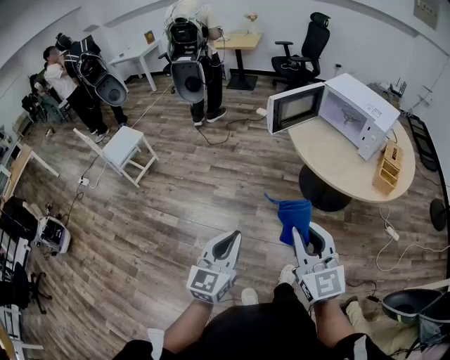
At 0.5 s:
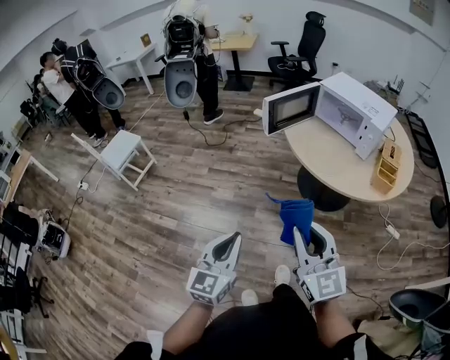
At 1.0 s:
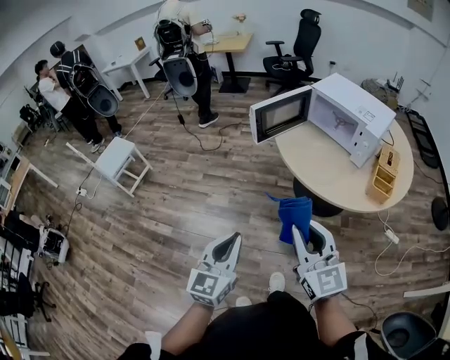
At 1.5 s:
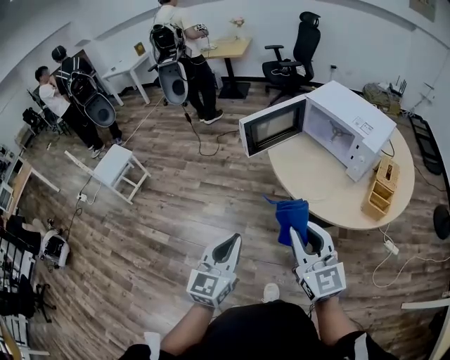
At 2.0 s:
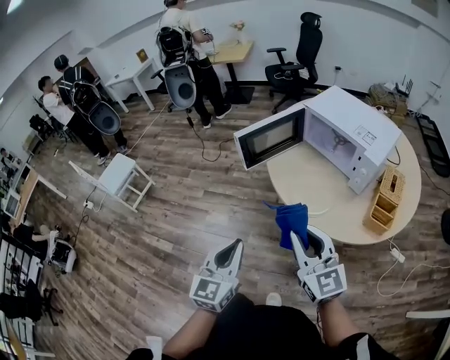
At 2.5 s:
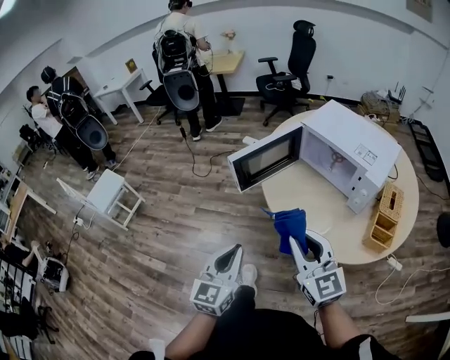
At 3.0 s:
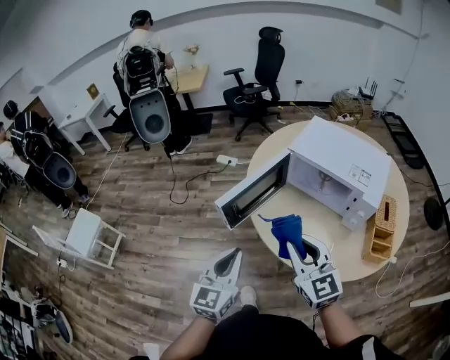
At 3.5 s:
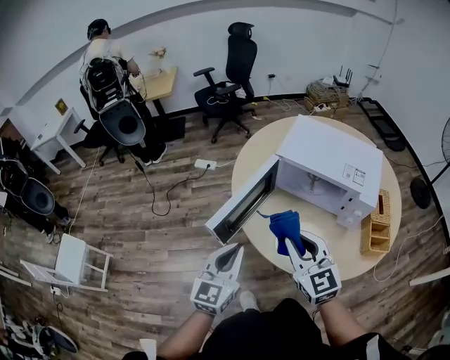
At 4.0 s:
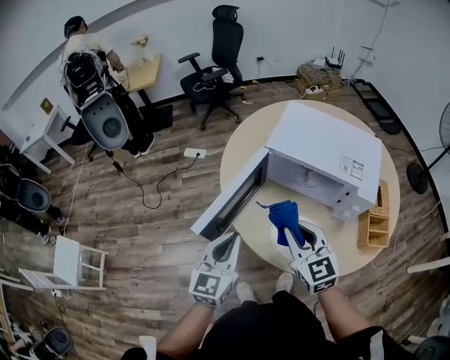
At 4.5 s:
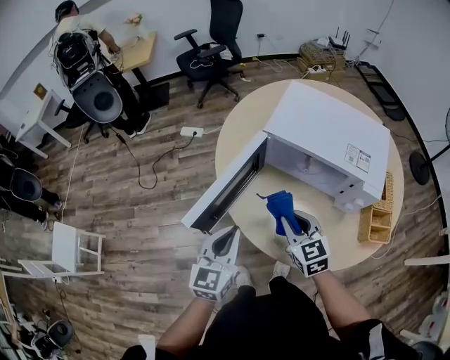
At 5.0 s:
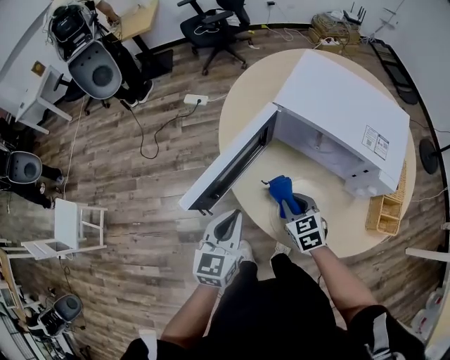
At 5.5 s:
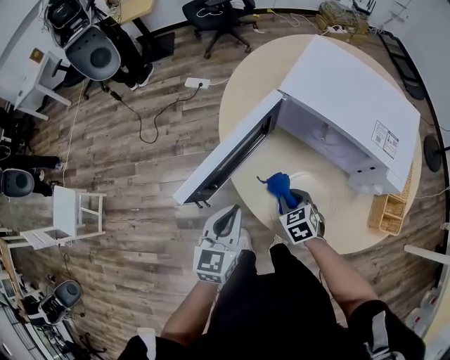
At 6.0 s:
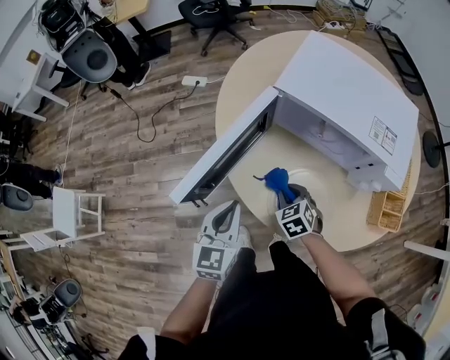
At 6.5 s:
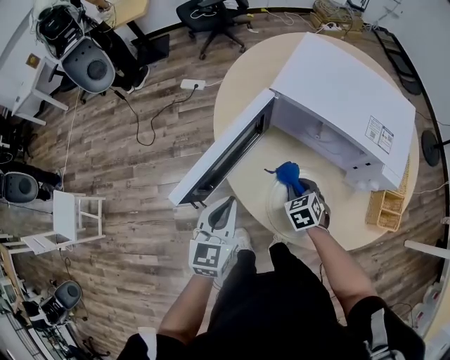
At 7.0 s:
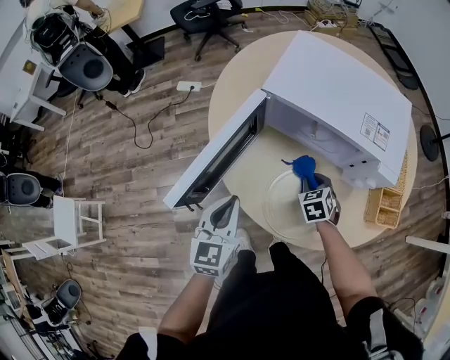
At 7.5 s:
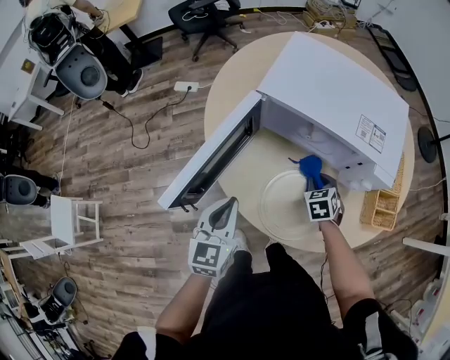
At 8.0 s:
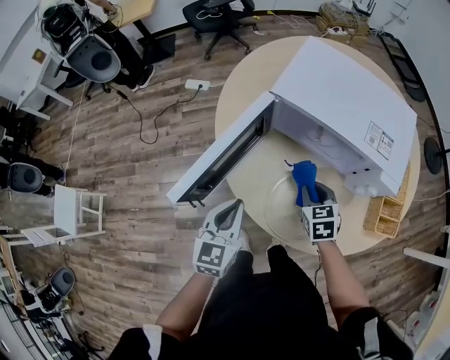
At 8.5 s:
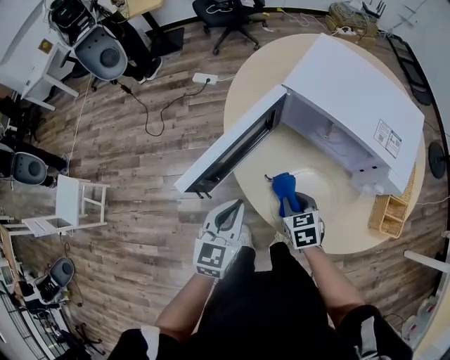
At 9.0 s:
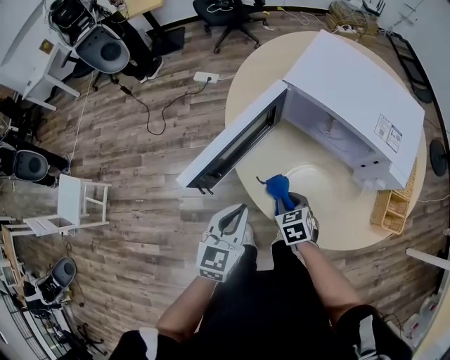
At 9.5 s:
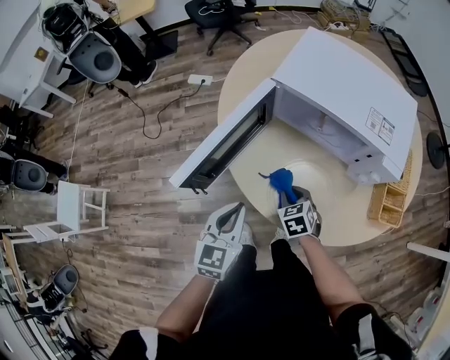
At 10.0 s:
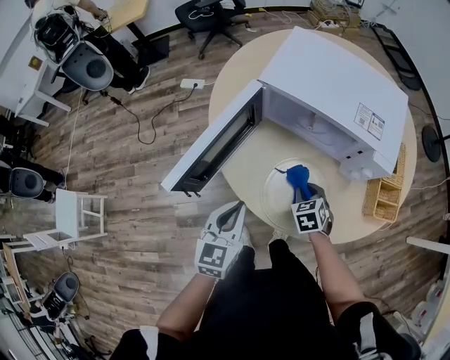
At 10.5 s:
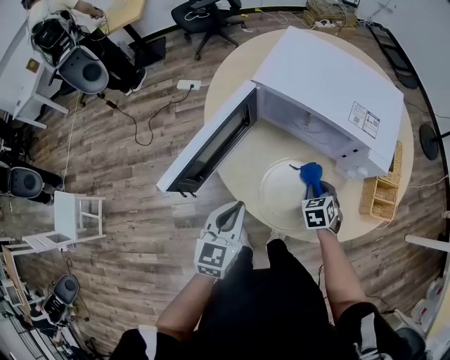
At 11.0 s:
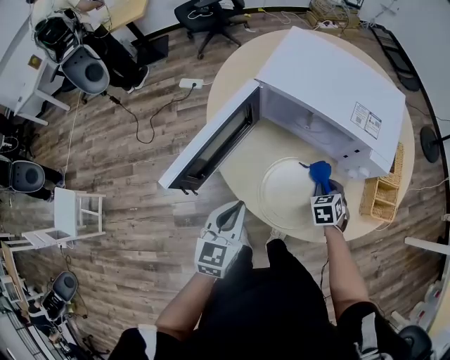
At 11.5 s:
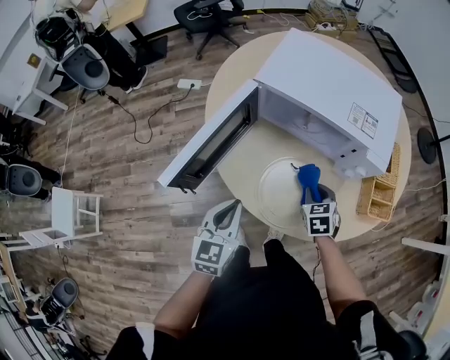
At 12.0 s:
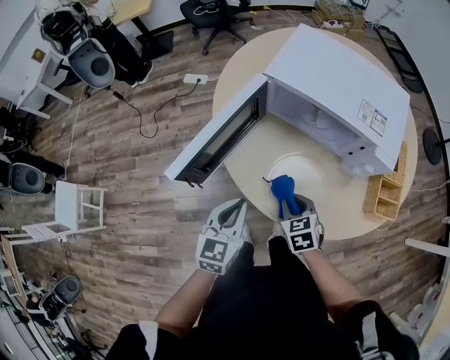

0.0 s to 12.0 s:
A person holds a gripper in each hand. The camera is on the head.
0.0 to 2.0 s: The grippers both shift forward and to the right by roughly 25 cm.
2.0 to 4.0 s: The left gripper moves about 40 cm, and swivels roughly 30 degrees. The right gripper changes place by approximately 35 cm, and rotates some 30 degrees.
4.0 to 6.0 s: The right gripper is displaced downward by some 25 cm, and angles its fingers downward, by about 40 degrees. Meanwhile the left gripper is displaced downward by some 10 cm.
6.0 to 8.0 s: The right gripper heads to the right and upward, covering about 10 cm, and turns by roughly 20 degrees.
8.0 to 10.0 s: The right gripper is displaced downward by approximately 5 cm, and reaches approximately 10 cm to the left, then returns.
10.0 to 12.0 s: The right gripper shifts some 10 cm backward and to the left.

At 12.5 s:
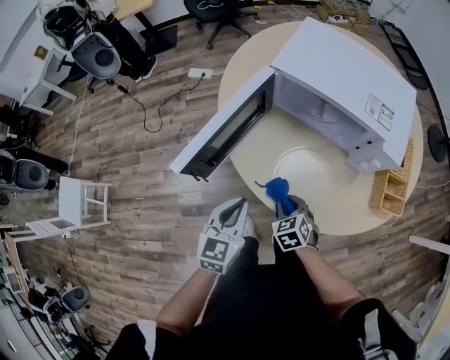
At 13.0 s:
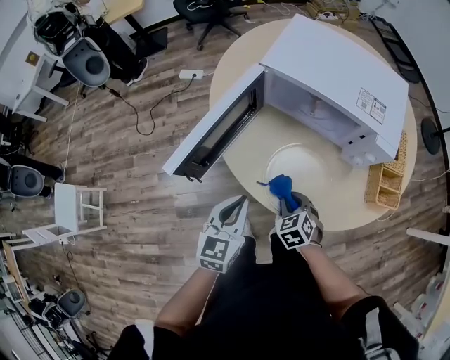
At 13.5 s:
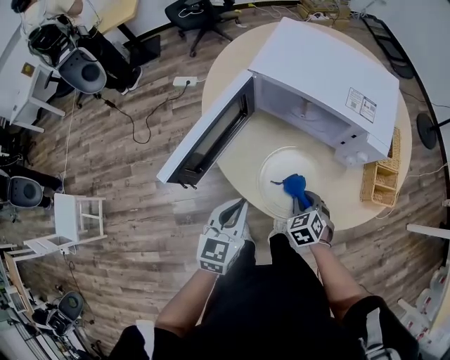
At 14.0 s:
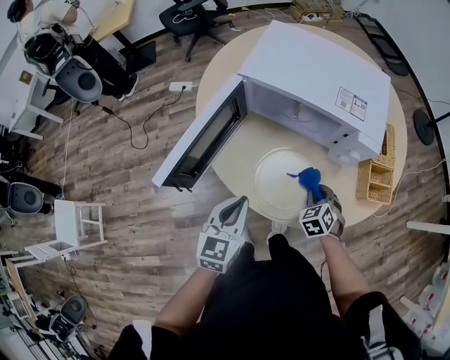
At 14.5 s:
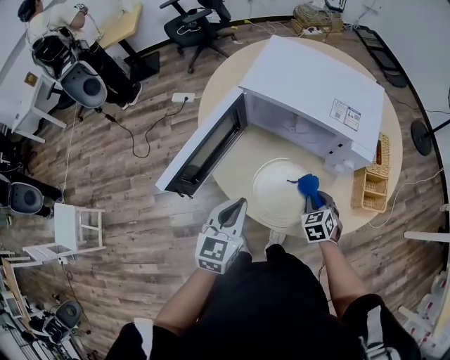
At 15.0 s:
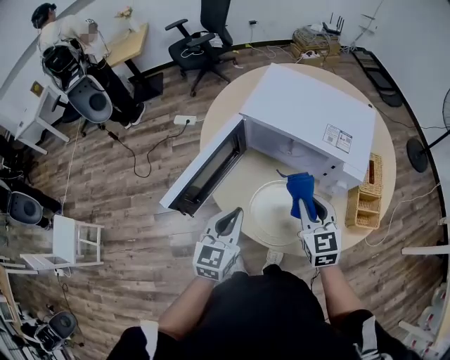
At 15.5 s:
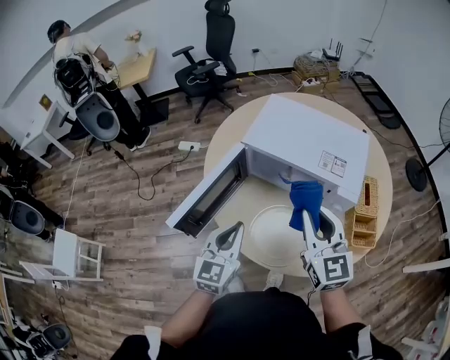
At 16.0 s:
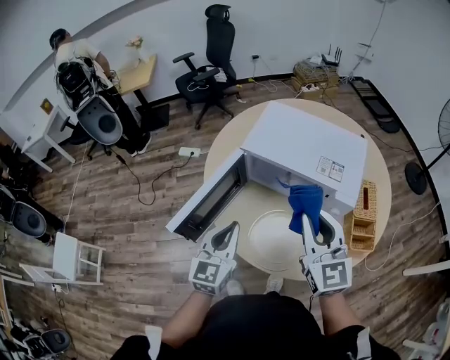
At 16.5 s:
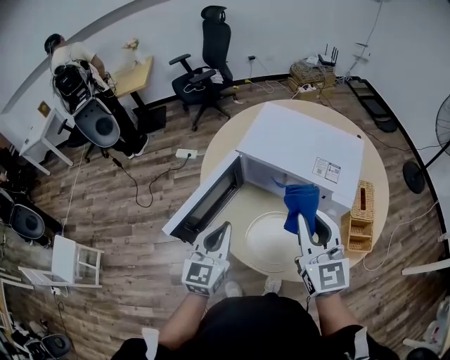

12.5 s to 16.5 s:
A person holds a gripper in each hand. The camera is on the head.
12.5 to 14.5 s: The left gripper shifts by approximately 5 cm. The right gripper goes approximately 20 cm to the right and forward.
14.5 to 16.5 s: The right gripper shifts approximately 35 cm upward, and tips its fingers upward by some 50 degrees. The left gripper shifts approximately 10 cm upward.

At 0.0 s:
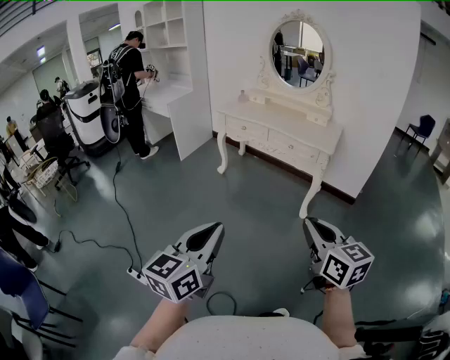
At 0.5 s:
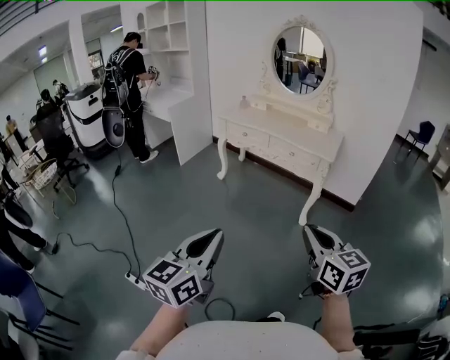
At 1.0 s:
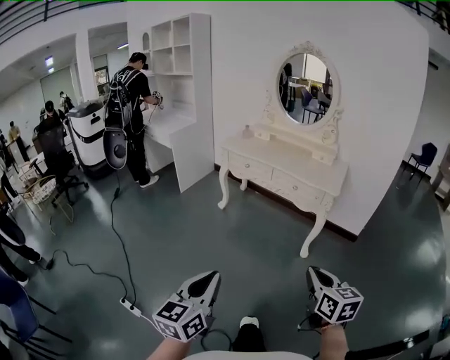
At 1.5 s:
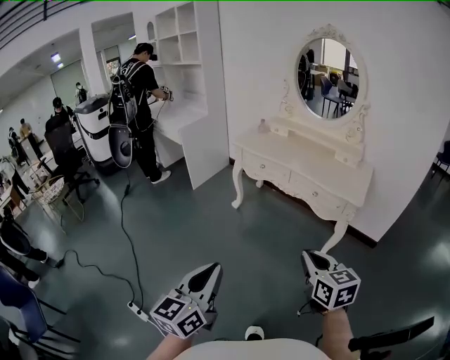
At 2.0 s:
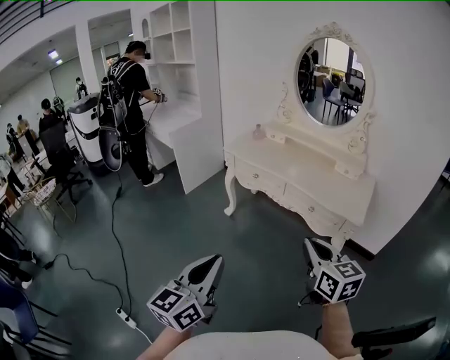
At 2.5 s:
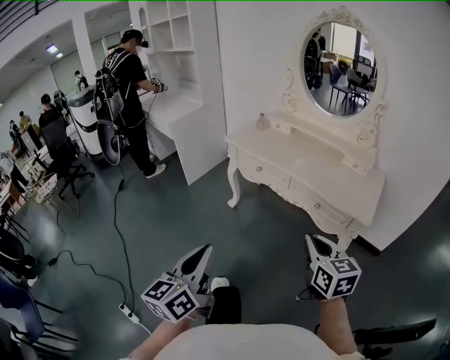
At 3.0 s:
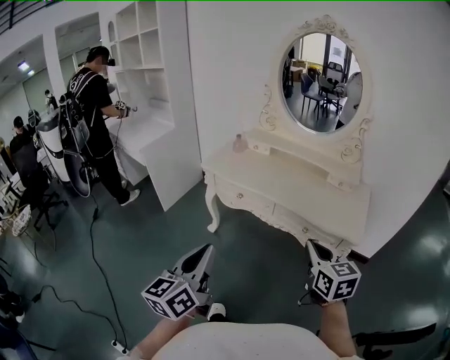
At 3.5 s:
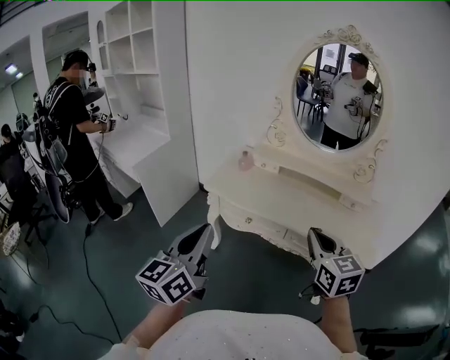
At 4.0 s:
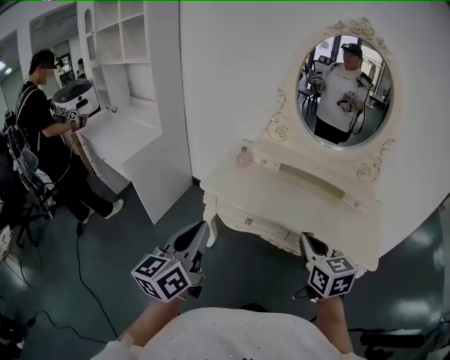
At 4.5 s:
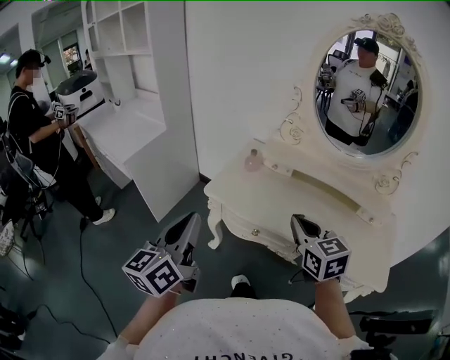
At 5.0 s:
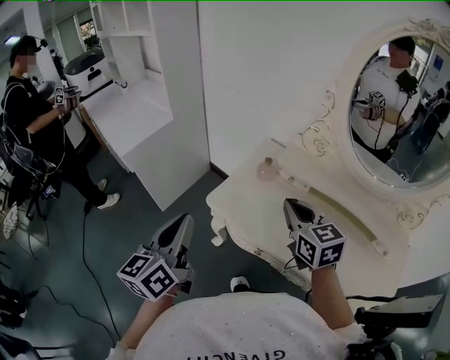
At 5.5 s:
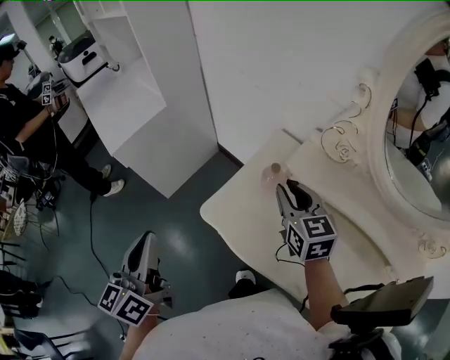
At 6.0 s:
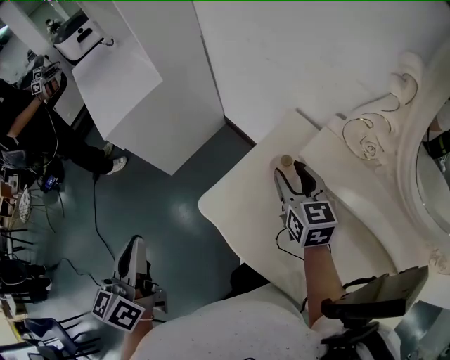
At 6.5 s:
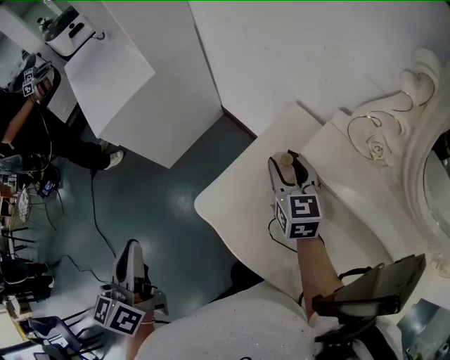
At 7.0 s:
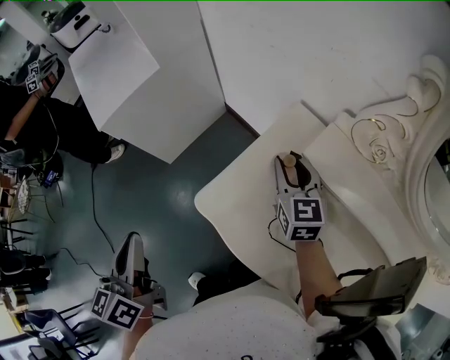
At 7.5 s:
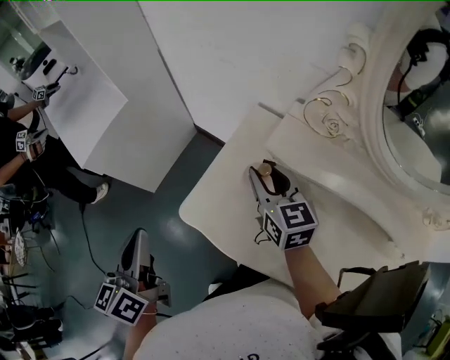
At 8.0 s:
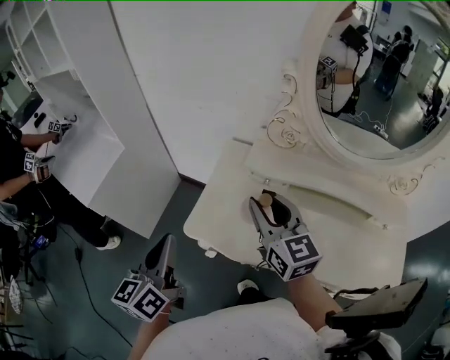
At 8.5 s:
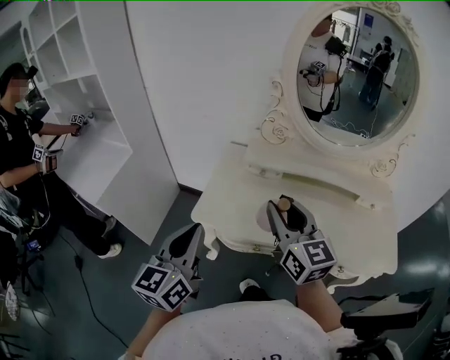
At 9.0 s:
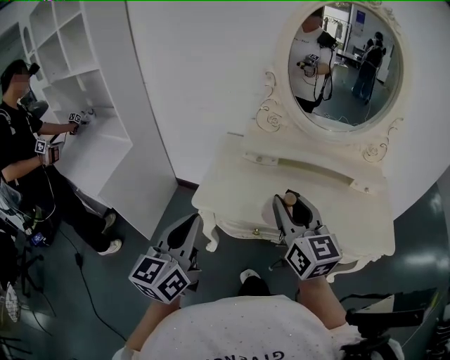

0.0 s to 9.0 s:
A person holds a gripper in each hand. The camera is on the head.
0.0 to 2.0 s: Both grippers travel together forward, some 40 cm.
2.0 to 4.5 s: Both grippers are carried forward, some 60 cm.
4.5 to 7.0 s: The right gripper shifts some 40 cm forward, and opens its fingers, while the left gripper shifts some 25 cm forward and downward, and changes its angle by roughly 40 degrees.
7.0 to 9.0 s: The left gripper ends up about 20 cm from where it was, and swivels approximately 50 degrees. Meanwhile the right gripper shifts by approximately 40 cm, and rotates roughly 30 degrees.

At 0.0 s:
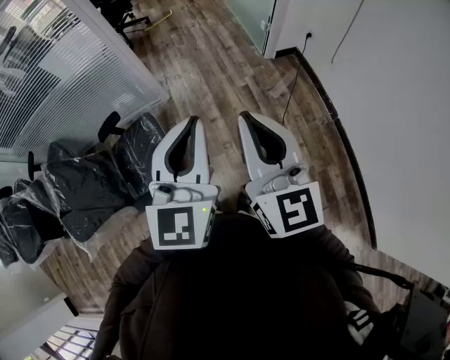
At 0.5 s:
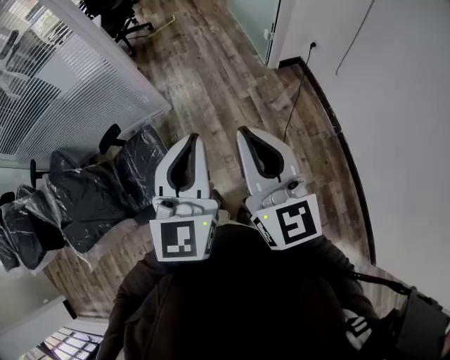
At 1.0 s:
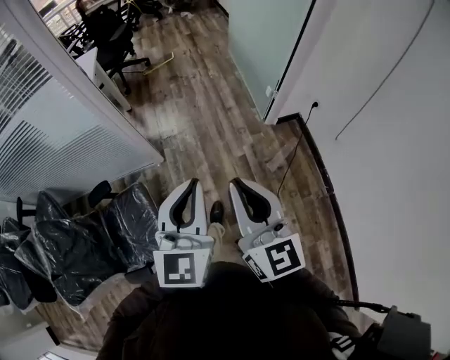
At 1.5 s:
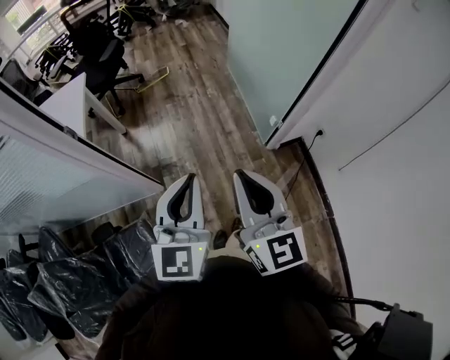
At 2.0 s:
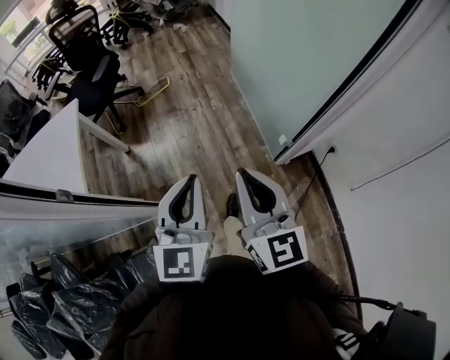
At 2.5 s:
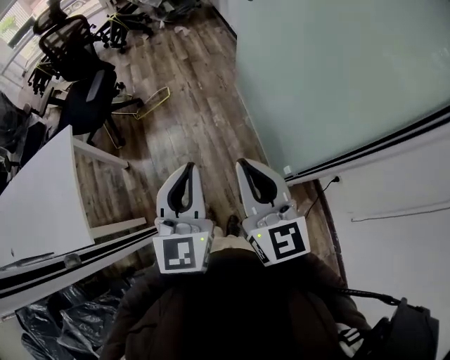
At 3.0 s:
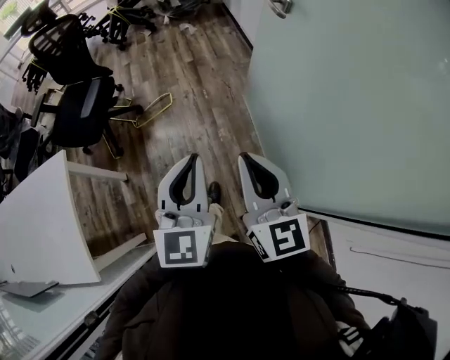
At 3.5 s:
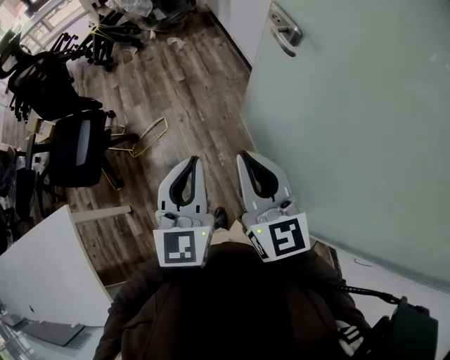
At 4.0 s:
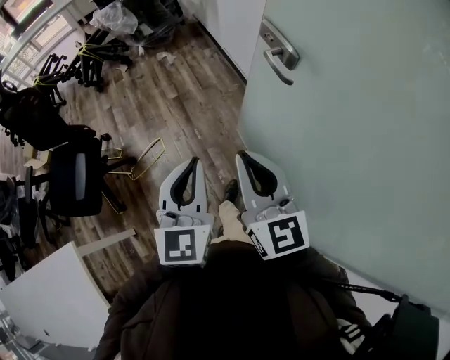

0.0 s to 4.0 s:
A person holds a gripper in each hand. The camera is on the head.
0.0 to 2.0 s: The pair of grippers is taken forward, approximately 70 cm.
2.0 to 4.0 s: The two grippers travel together, forward, approximately 80 cm.
